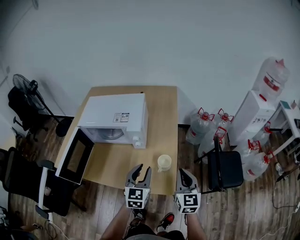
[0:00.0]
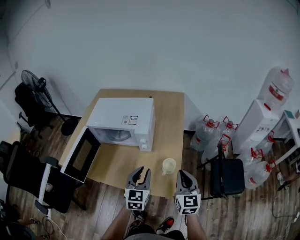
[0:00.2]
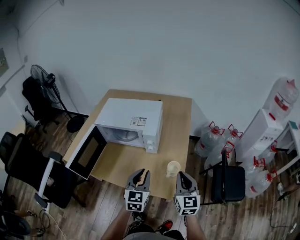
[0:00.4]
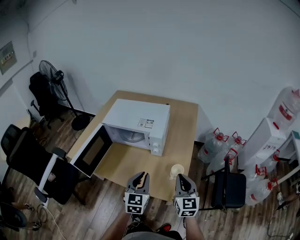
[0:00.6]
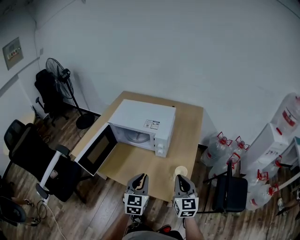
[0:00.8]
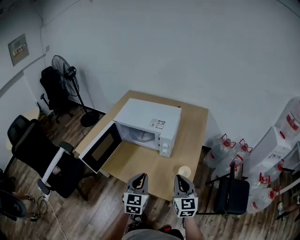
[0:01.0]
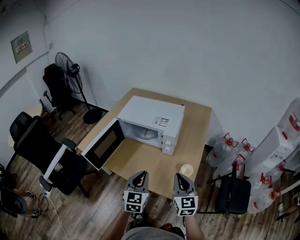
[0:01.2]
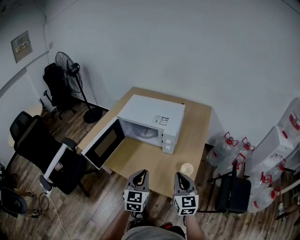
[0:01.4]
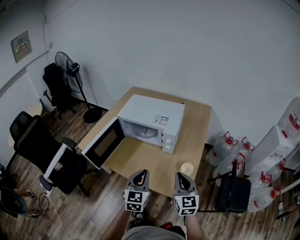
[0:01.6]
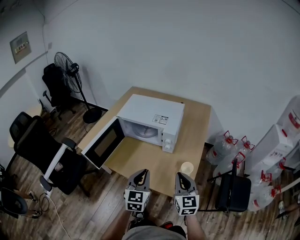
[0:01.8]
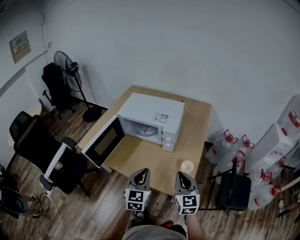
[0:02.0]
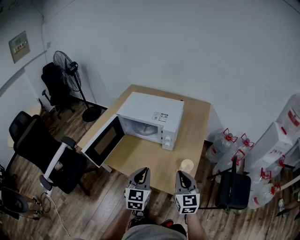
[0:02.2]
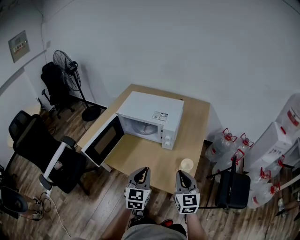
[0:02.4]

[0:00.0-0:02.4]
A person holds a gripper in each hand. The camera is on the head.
0:00.0 to 0:01.2: The left gripper is displaced to the left and backward by about 15 cm. Meanwhile the right gripper is displaced to the left by roughly 15 cm.
0:01.2 to 0:02.4: The grippers make only small movements.

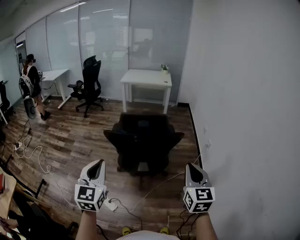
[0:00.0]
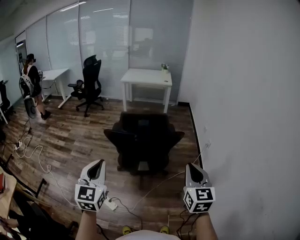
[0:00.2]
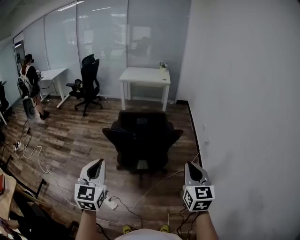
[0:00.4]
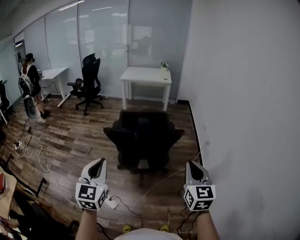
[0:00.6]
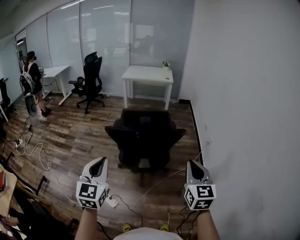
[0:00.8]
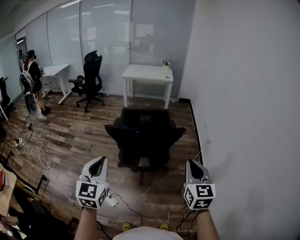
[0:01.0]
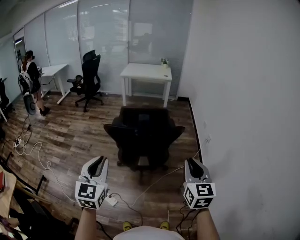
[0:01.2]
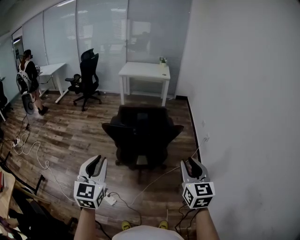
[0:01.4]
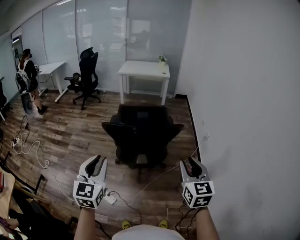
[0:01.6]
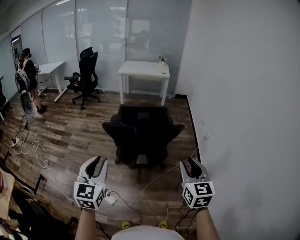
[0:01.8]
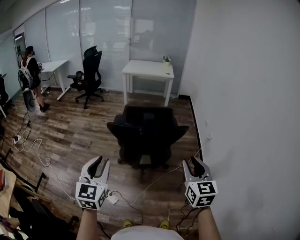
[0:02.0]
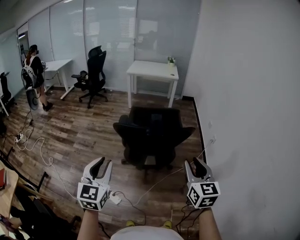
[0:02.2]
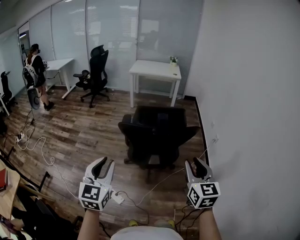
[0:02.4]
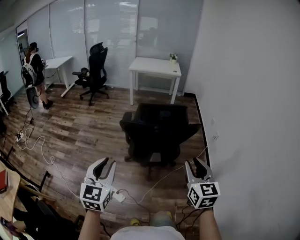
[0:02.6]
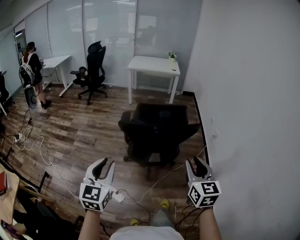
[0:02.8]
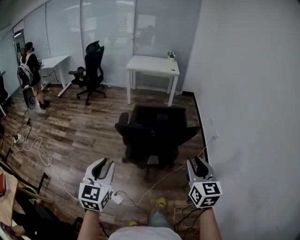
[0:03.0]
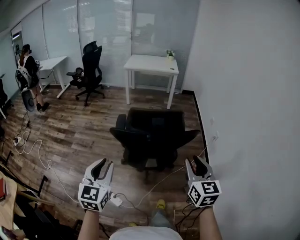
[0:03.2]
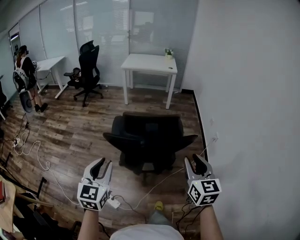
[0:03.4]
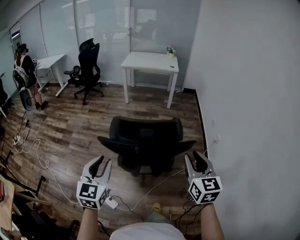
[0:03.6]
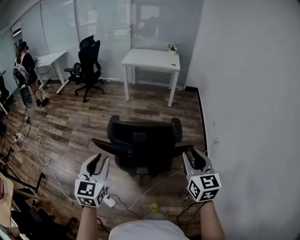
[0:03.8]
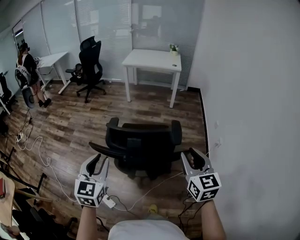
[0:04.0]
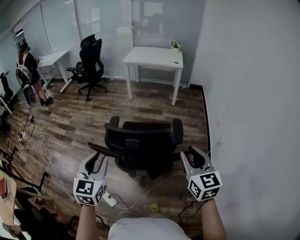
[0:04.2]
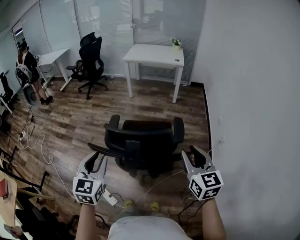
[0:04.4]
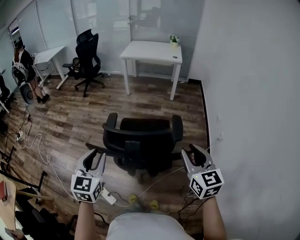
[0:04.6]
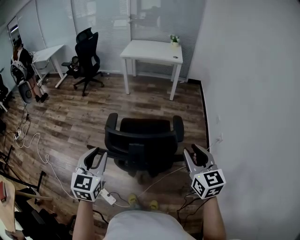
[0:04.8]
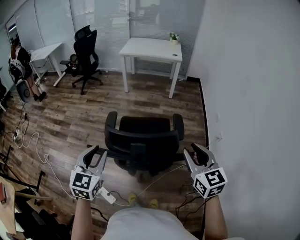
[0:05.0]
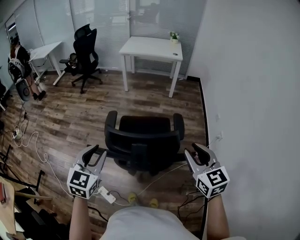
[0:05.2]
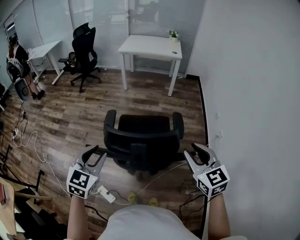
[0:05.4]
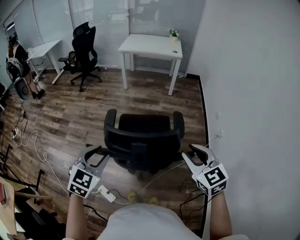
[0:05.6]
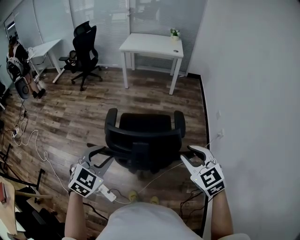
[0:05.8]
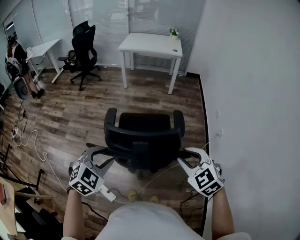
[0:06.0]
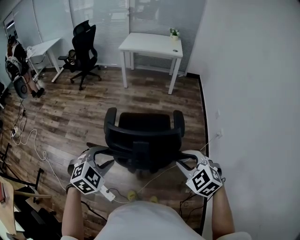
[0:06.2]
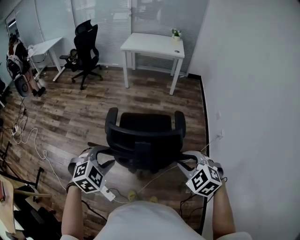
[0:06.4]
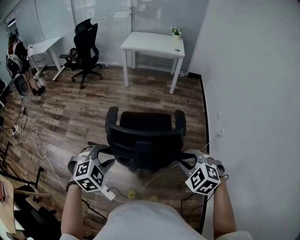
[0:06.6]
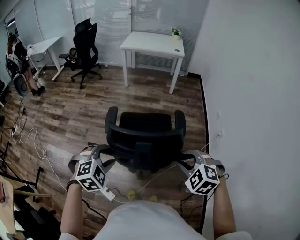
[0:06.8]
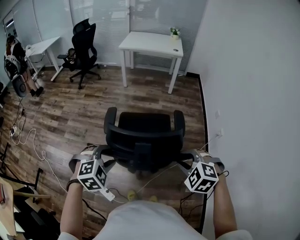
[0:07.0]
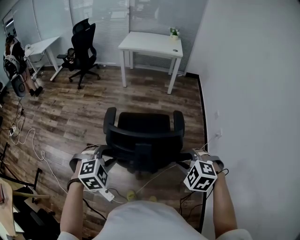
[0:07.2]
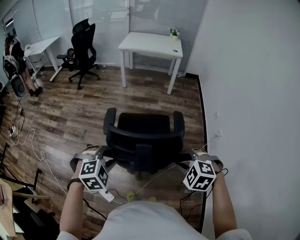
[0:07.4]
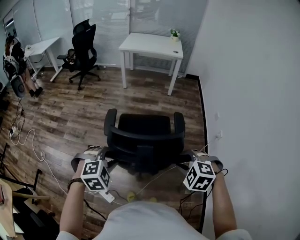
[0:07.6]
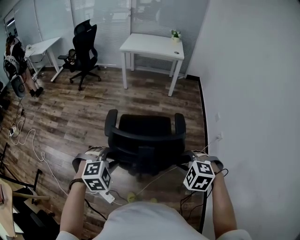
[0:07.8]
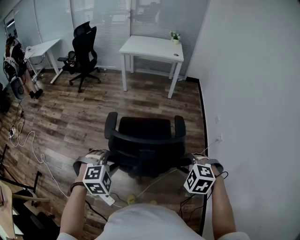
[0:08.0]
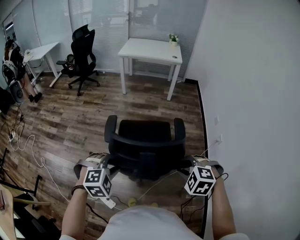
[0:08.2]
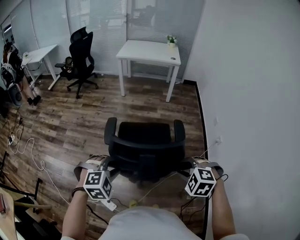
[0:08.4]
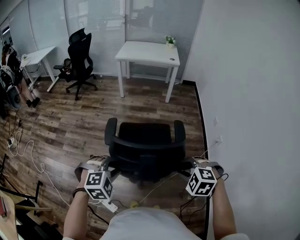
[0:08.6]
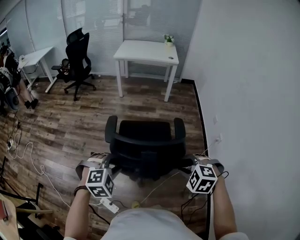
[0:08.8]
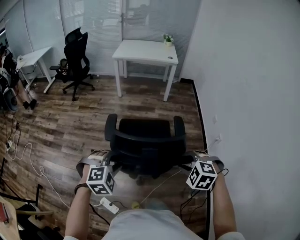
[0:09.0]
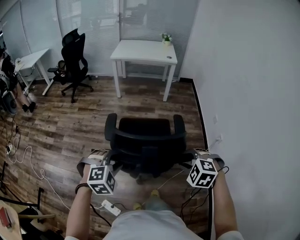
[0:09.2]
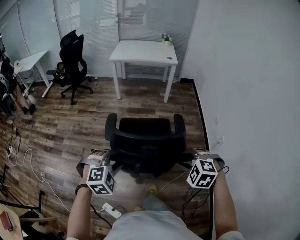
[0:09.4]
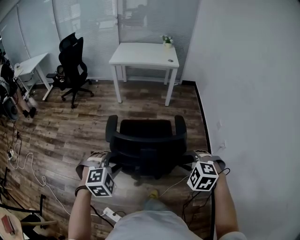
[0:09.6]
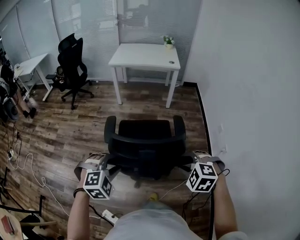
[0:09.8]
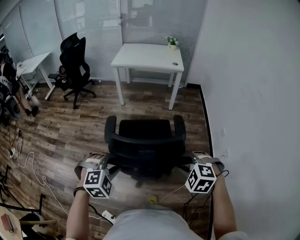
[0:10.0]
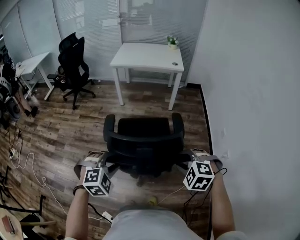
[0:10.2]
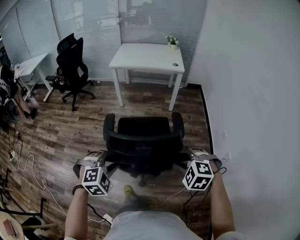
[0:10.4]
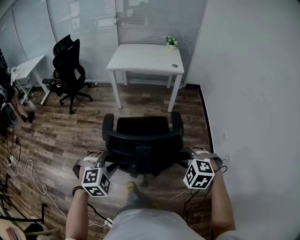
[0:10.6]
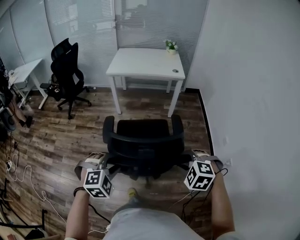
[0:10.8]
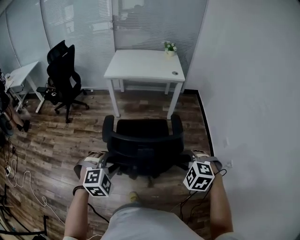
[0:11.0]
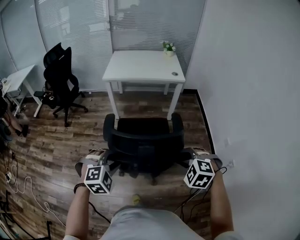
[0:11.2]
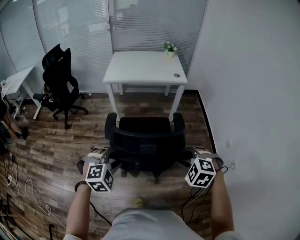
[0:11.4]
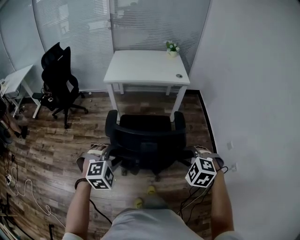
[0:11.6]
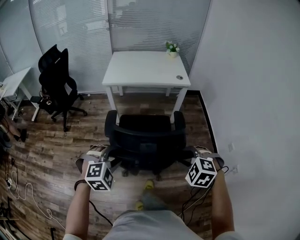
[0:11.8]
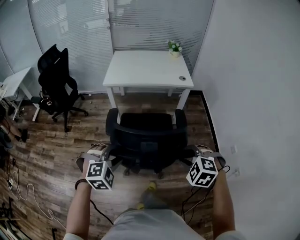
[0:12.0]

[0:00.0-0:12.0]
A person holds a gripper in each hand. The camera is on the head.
0:00.0 to 0:01.6: The right gripper opens.
0:01.6 to 0:03.0: The left gripper shifts about 10 cm to the left; the right gripper goes roughly 10 cm to the left and forward.
0:03.0 to 0:04.4: Both grippers travel together forward and to the right, roughly 30 cm.
0:04.4 to 0:06.0: The left gripper is displaced downward by approximately 5 cm, and rotates approximately 40 degrees. The right gripper is displaced to the left and downward by roughly 10 cm, and changes its angle by roughly 40 degrees.
0:06.0 to 0:07.6: The right gripper travels downward by about 5 cm, and turns by roughly 30 degrees. The left gripper turns by some 30 degrees.
0:07.6 to 0:09.0: Both grippers move forward, roughly 5 cm.
0:09.0 to 0:10.4: The grippers both shift forward by approximately 30 cm.
0:10.4 to 0:12.0: Both grippers travel together forward, some 35 cm.

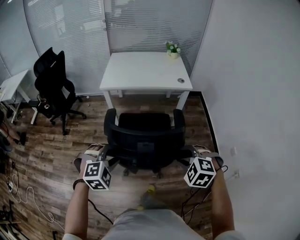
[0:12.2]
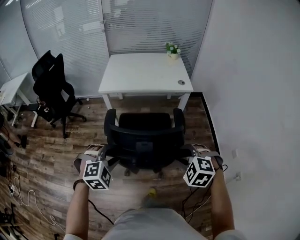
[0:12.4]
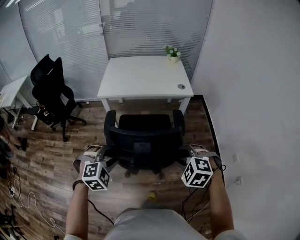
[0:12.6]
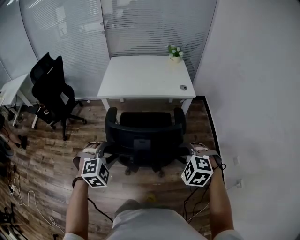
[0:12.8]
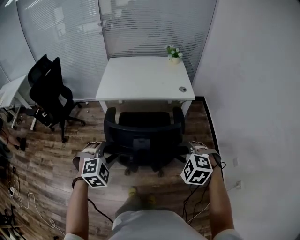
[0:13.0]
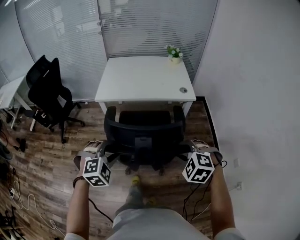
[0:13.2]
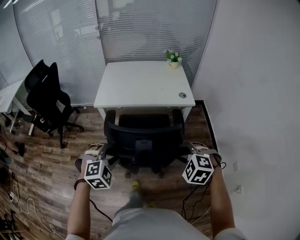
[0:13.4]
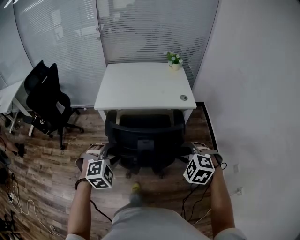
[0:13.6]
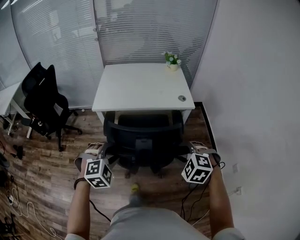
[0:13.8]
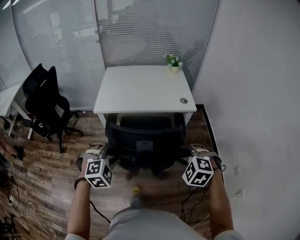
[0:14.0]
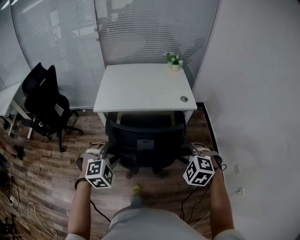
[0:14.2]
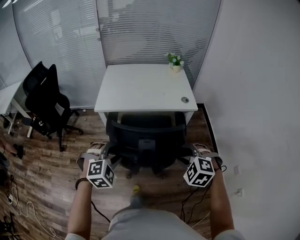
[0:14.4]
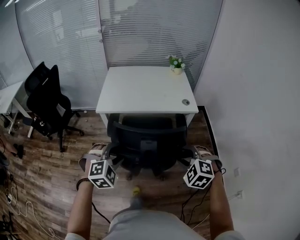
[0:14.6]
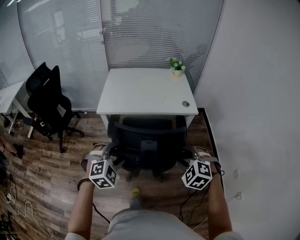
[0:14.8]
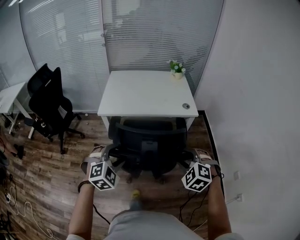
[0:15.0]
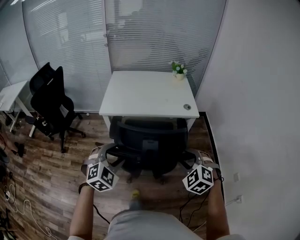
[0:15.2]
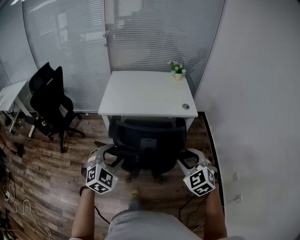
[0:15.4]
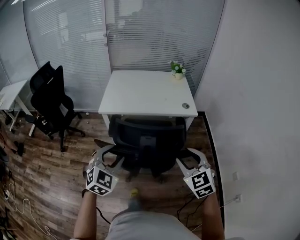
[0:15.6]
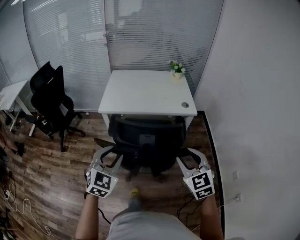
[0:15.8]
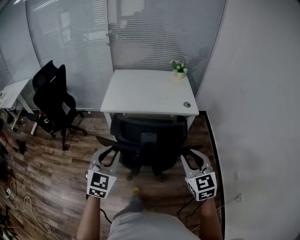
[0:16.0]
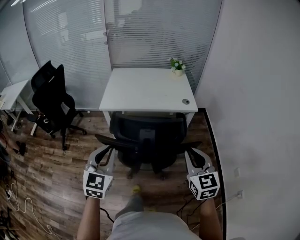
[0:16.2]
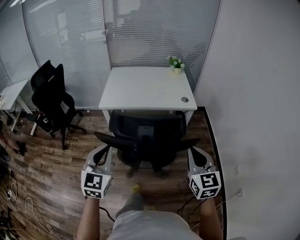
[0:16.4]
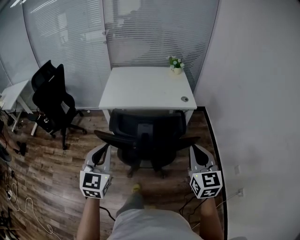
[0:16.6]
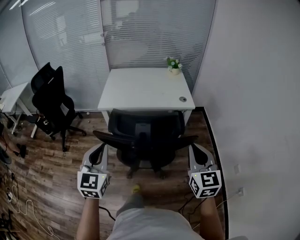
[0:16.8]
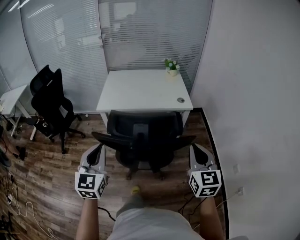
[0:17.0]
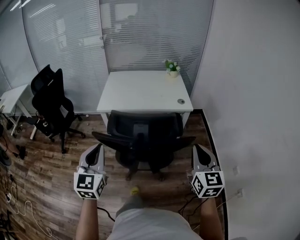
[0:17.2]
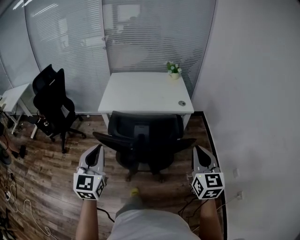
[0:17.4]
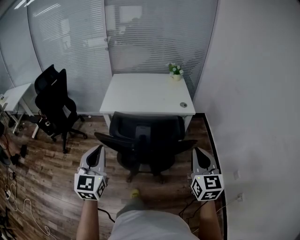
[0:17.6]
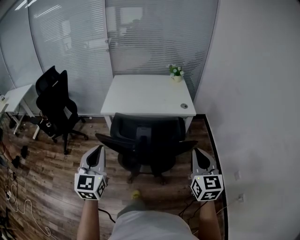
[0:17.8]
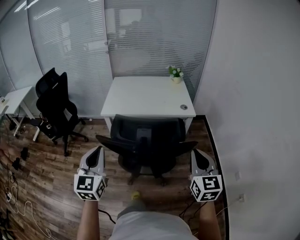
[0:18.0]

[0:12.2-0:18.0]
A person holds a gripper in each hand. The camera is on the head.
0:12.2 to 0:13.6: The grippers both shift forward by roughly 20 cm.
0:13.6 to 0:15.0: The grippers stay close to where they were, moving slightly.
0:15.0 to 0:16.6: Both grippers travel together upward and backward, roughly 10 cm. The right gripper points its fingers approximately 40 degrees further upward, and closes up; the left gripper points its fingers about 30 degrees further upward, and closes.
0:16.6 to 0:18.0: The grippers make only small movements.

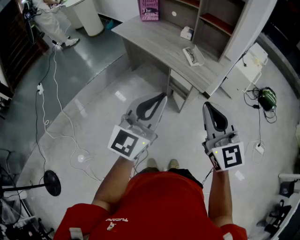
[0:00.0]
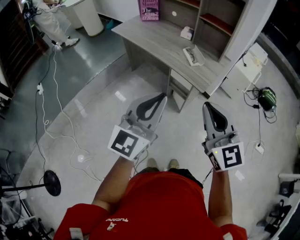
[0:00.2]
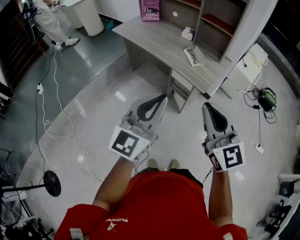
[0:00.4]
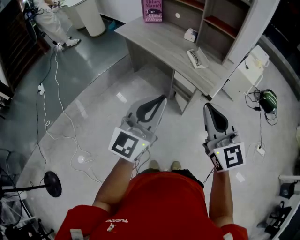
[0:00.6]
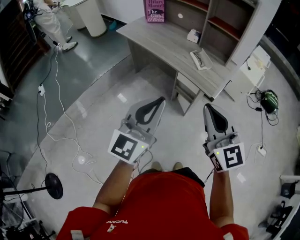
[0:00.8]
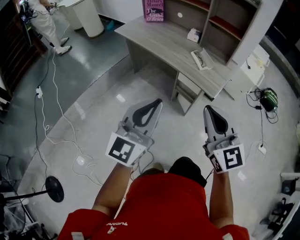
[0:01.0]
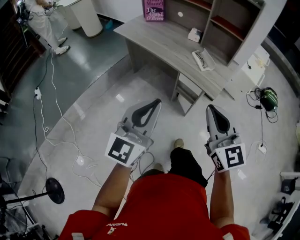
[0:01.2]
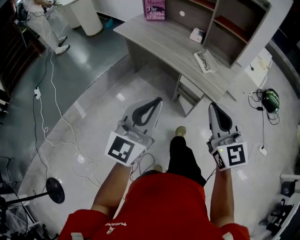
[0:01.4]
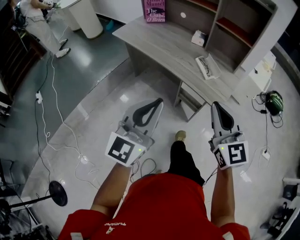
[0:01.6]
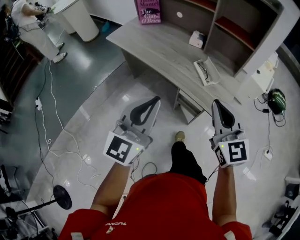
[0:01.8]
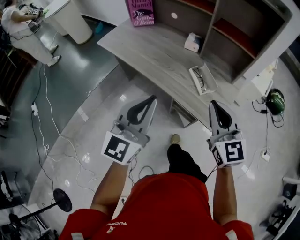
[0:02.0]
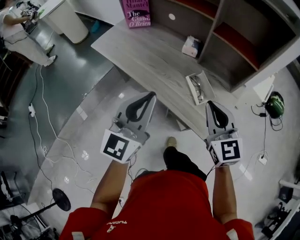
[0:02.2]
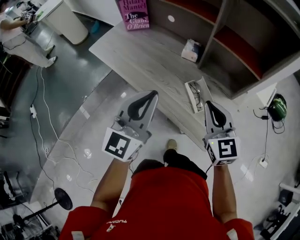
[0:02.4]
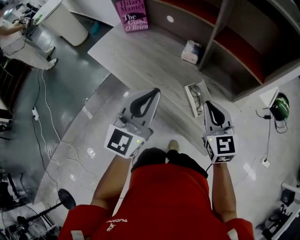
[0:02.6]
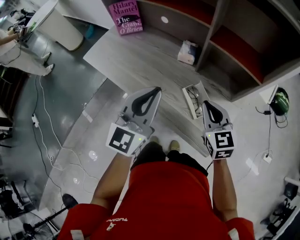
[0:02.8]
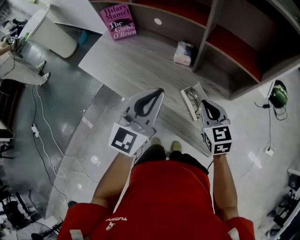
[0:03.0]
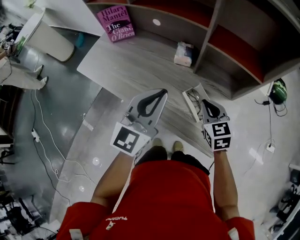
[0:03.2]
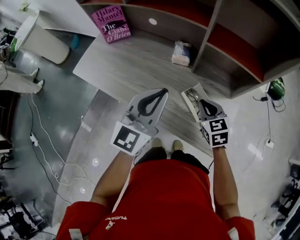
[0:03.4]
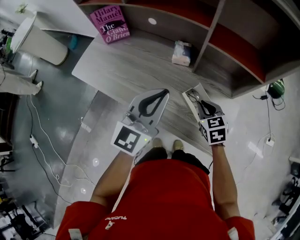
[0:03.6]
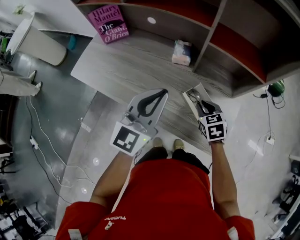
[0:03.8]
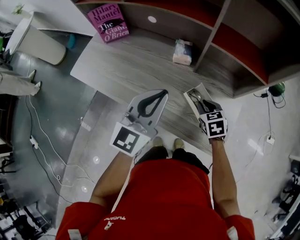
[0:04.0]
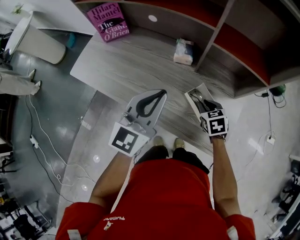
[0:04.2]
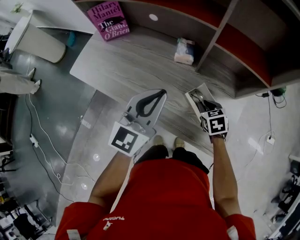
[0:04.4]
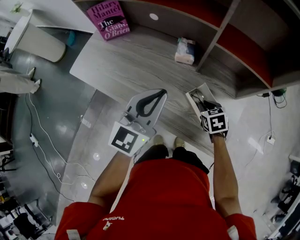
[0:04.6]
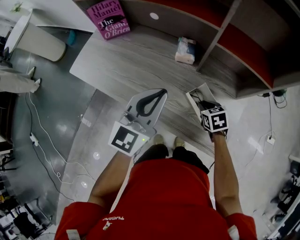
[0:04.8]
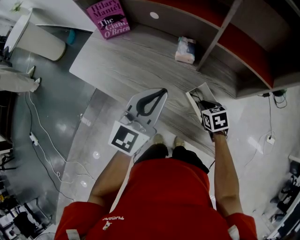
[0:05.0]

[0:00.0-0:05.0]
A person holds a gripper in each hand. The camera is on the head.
0:00.0 to 0:01.6: The left gripper is displaced forward and to the left by approximately 15 cm. Meanwhile the right gripper shifts approximately 15 cm forward.
0:01.6 to 0:03.4: The left gripper shifts some 40 cm forward. Meanwhile the right gripper is displaced forward and downward by about 40 cm, and angles its fingers downward, by approximately 40 degrees.
0:03.4 to 0:05.0: The right gripper travels downward by roughly 10 cm, and turns by about 20 degrees.
